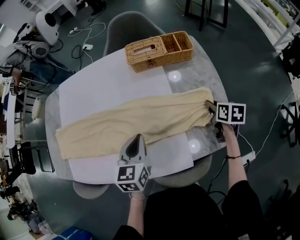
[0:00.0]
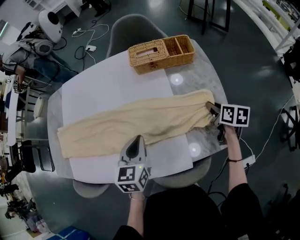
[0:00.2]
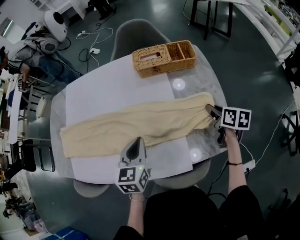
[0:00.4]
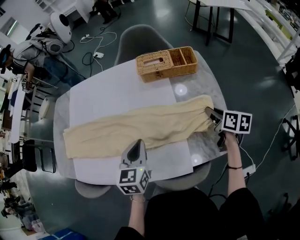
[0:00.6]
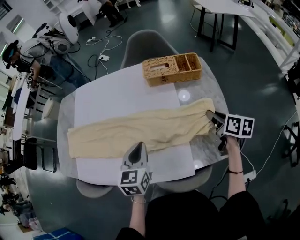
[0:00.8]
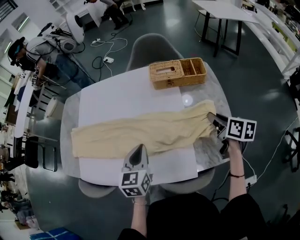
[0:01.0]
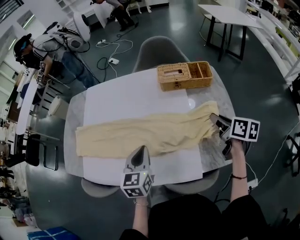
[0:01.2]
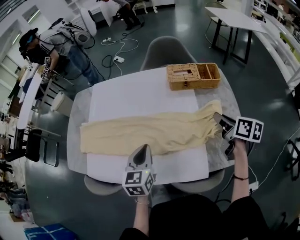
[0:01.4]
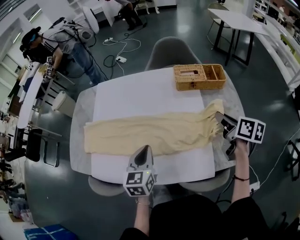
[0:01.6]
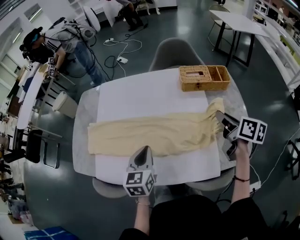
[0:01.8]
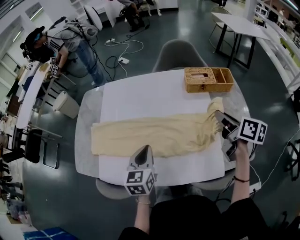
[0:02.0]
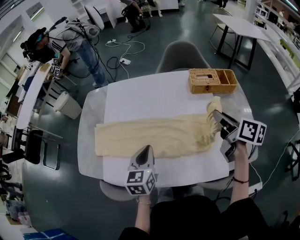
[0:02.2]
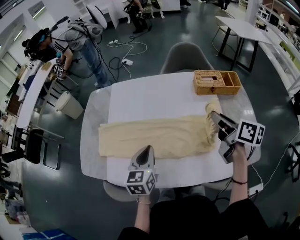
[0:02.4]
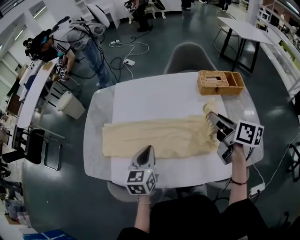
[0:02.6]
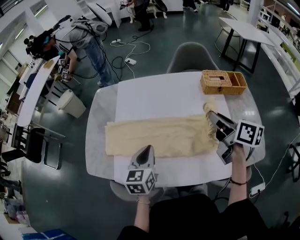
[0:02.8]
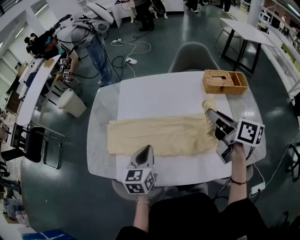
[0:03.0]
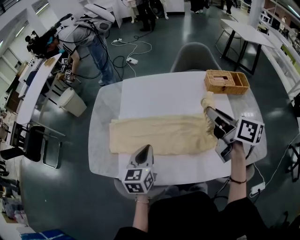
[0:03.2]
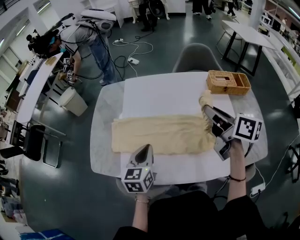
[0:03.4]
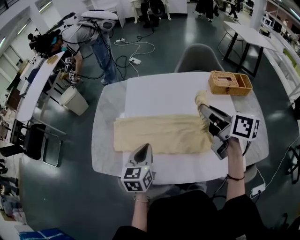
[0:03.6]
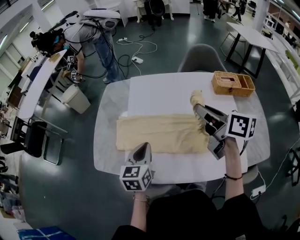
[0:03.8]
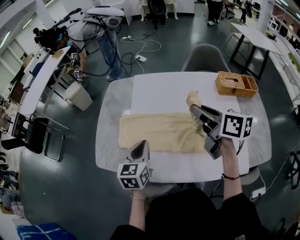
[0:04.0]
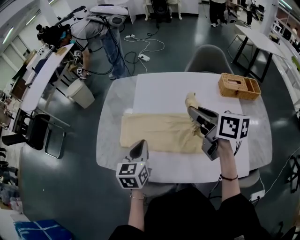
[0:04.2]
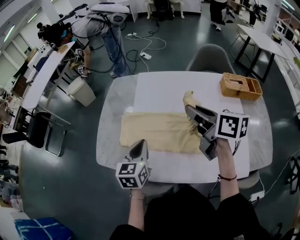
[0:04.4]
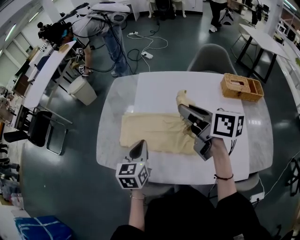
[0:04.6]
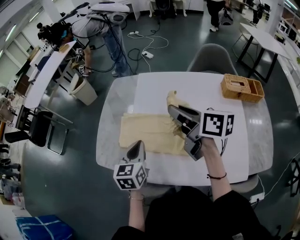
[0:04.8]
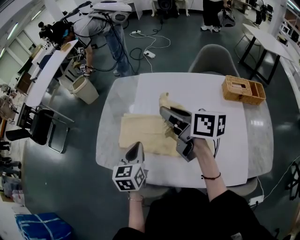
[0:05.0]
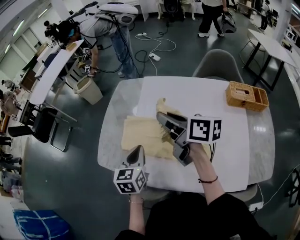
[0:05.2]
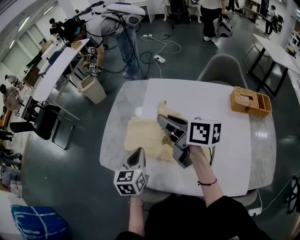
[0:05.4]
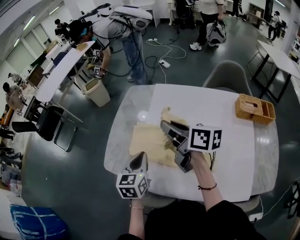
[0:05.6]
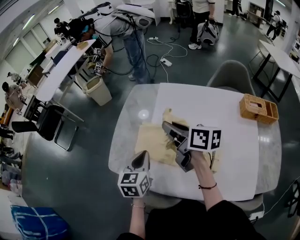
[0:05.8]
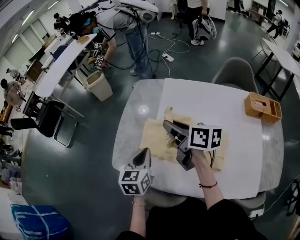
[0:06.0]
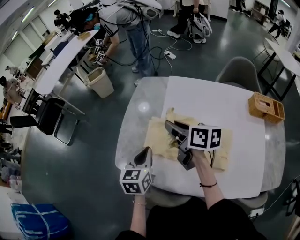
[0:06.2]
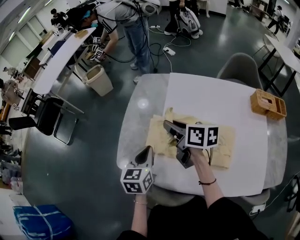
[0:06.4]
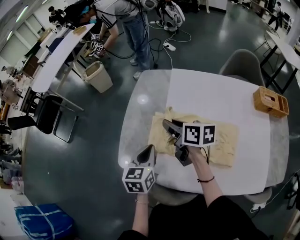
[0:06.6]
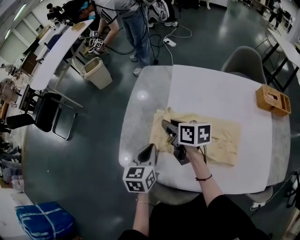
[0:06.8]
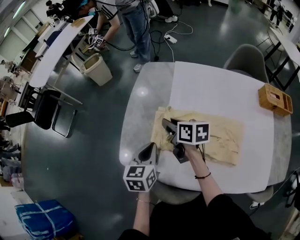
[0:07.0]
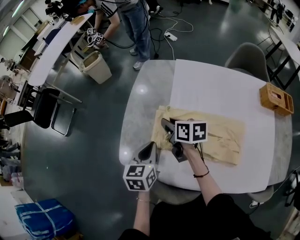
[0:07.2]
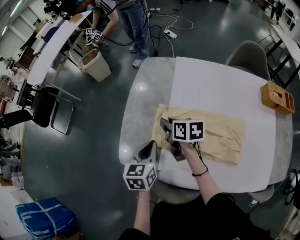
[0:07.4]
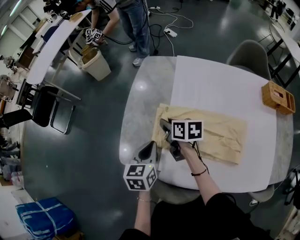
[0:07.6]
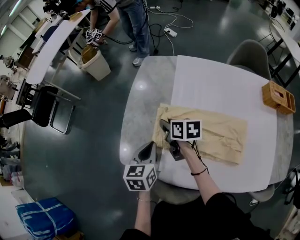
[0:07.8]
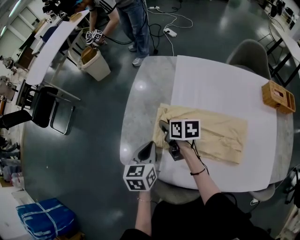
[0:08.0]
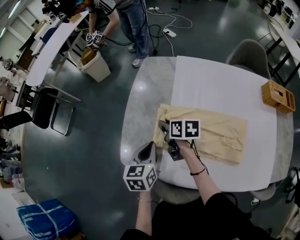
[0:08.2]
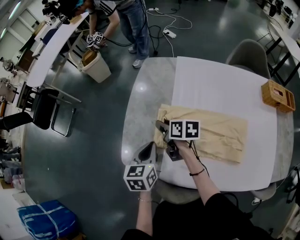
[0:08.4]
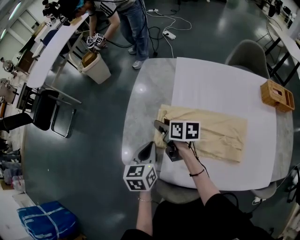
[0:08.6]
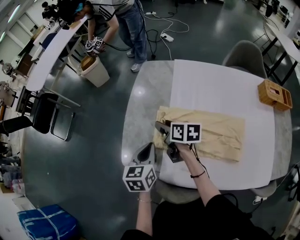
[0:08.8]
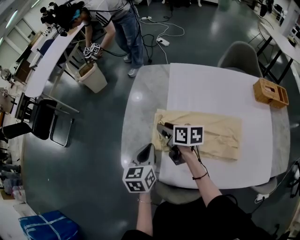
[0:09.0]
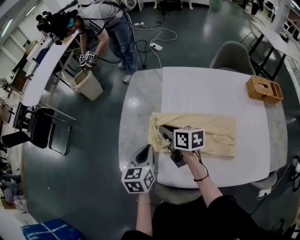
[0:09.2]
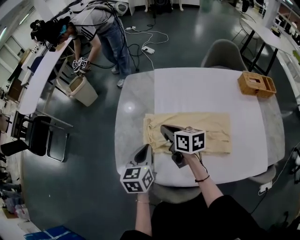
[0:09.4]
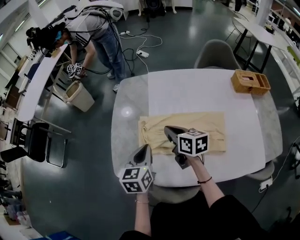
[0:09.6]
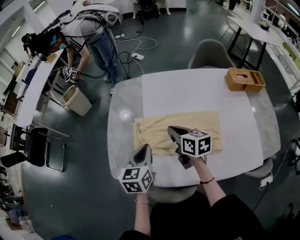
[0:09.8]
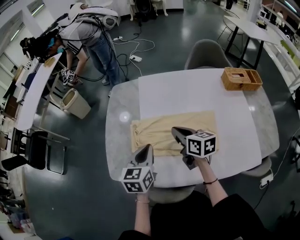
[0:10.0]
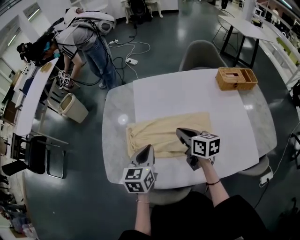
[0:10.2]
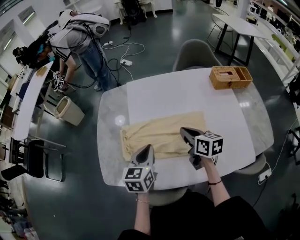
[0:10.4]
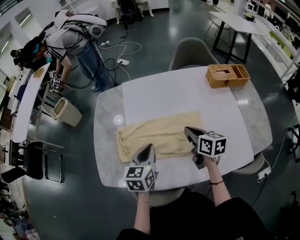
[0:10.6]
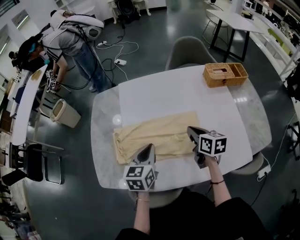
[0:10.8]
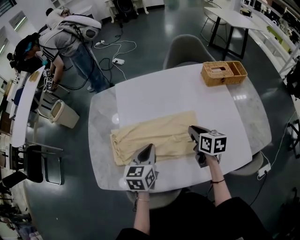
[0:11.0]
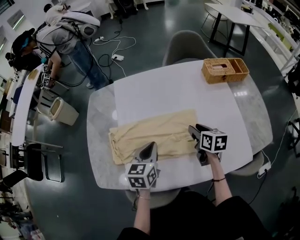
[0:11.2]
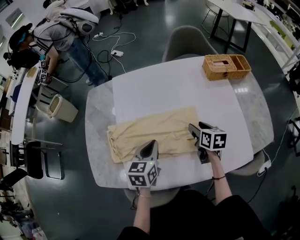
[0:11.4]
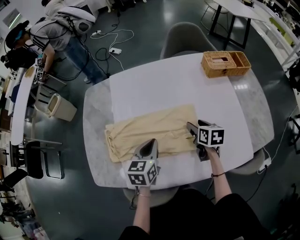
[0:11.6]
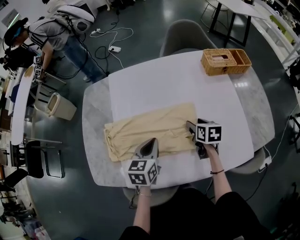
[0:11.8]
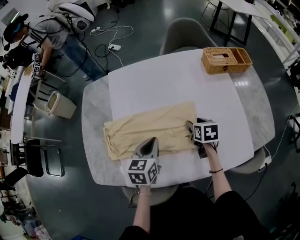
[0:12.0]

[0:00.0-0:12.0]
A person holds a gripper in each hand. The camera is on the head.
0:00.0 to 0:01.6: The left gripper heads to the left, covering some 15 cm. The right gripper moves upward and to the left, roughly 25 cm, and turns by approximately 20 degrees.
0:01.6 to 0:03.0: Both grippers travel together to the left, roughly 20 cm.
0:03.0 to 0:04.4: The right gripper heads to the left, covering approximately 20 cm; the left gripper shifts about 10 cm to the left.
0:04.4 to 0:06.0: The right gripper goes roughly 20 cm to the left and forward, while the left gripper shifts approximately 10 cm to the left and forward.
0:06.0 to 0:07.6: The right gripper is displaced downward and to the left by some 20 cm, and changes its angle by some 20 degrees; the left gripper travels downward by some 5 cm.
0:07.6 to 0:09.0: The right gripper opens its fingers.
0:09.0 to 0:10.4: The right gripper shifts roughly 25 cm to the right, swivels some 20 degrees, and closes its fingers. The left gripper heads to the right, covering some 15 cm.
0:10.4 to 0:12.0: The right gripper travels to the right and downward by about 20 cm, swivels some 30 degrees, and opens; the left gripper moves to the right and downward, roughly 10 cm.

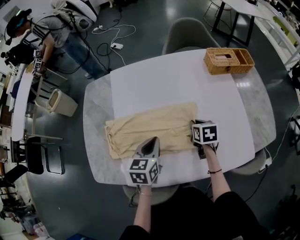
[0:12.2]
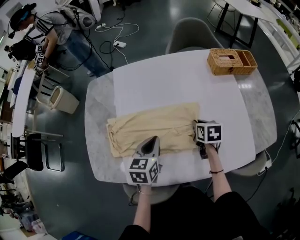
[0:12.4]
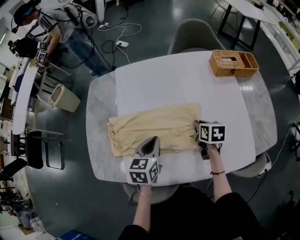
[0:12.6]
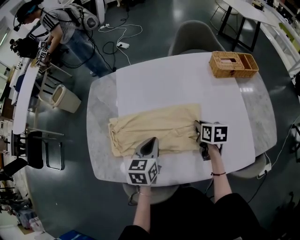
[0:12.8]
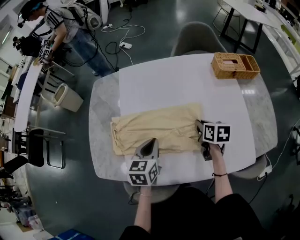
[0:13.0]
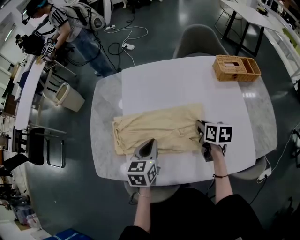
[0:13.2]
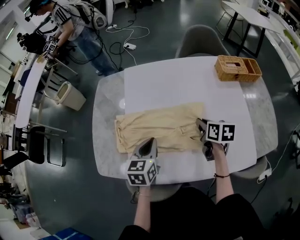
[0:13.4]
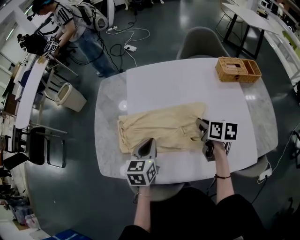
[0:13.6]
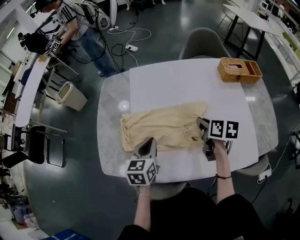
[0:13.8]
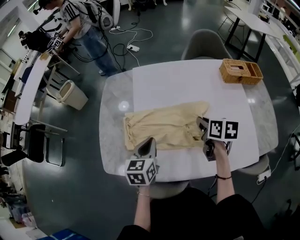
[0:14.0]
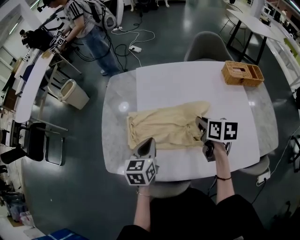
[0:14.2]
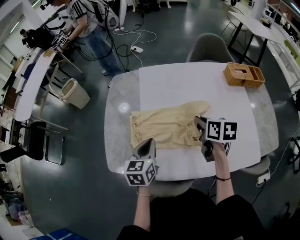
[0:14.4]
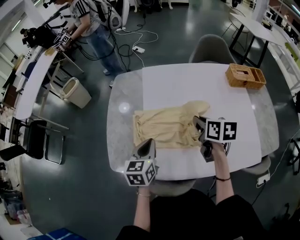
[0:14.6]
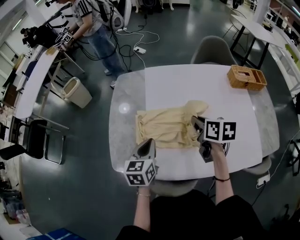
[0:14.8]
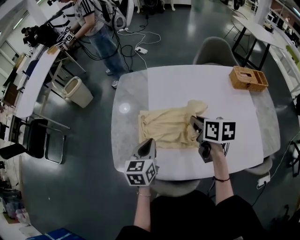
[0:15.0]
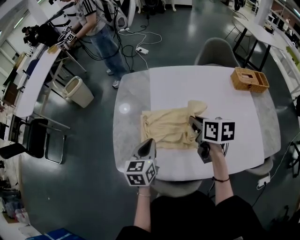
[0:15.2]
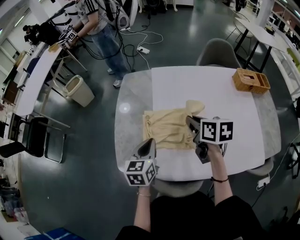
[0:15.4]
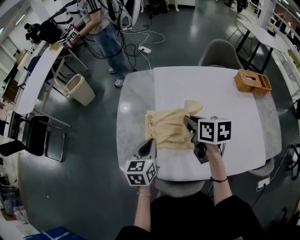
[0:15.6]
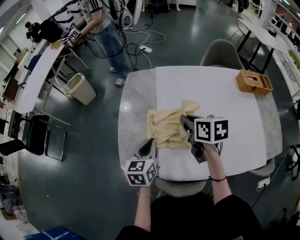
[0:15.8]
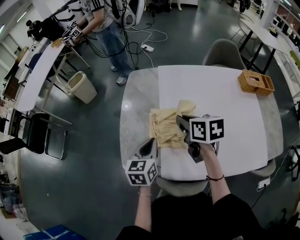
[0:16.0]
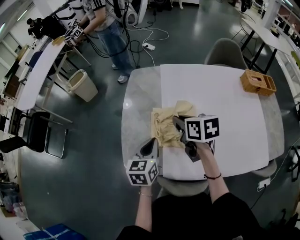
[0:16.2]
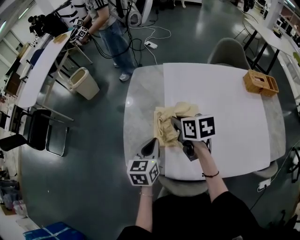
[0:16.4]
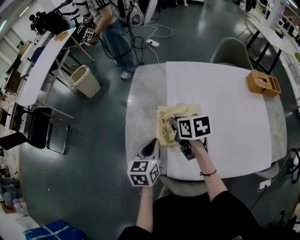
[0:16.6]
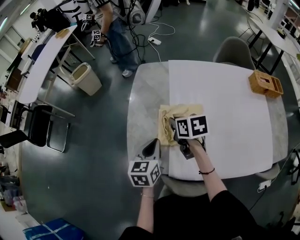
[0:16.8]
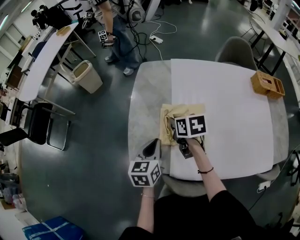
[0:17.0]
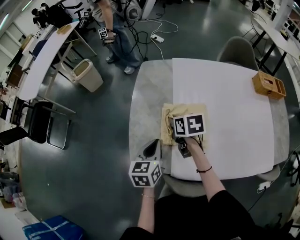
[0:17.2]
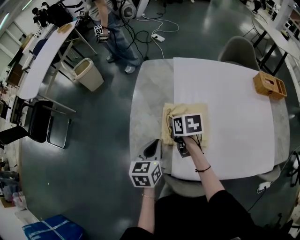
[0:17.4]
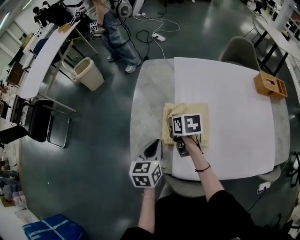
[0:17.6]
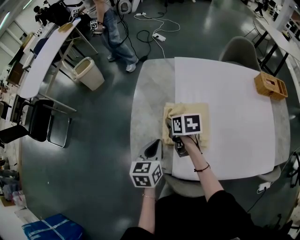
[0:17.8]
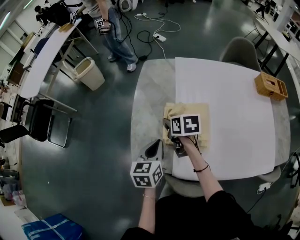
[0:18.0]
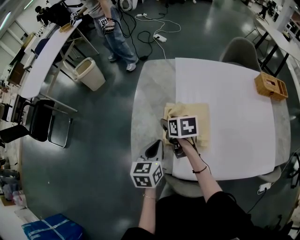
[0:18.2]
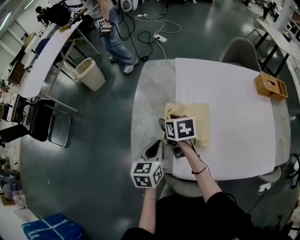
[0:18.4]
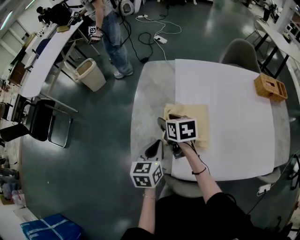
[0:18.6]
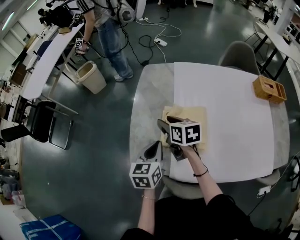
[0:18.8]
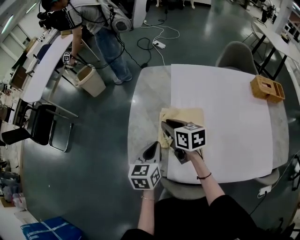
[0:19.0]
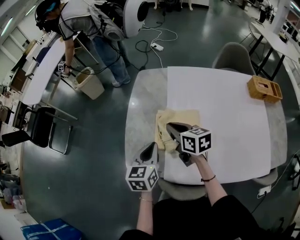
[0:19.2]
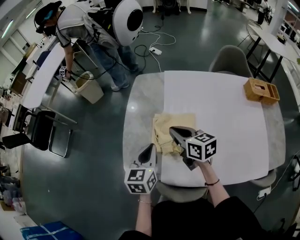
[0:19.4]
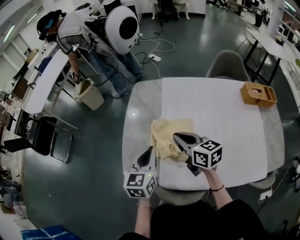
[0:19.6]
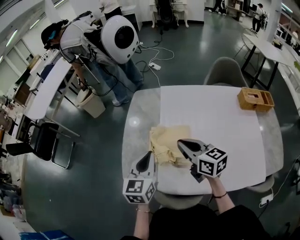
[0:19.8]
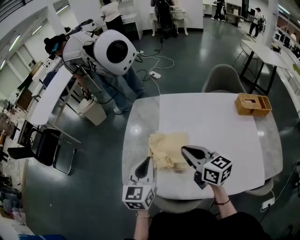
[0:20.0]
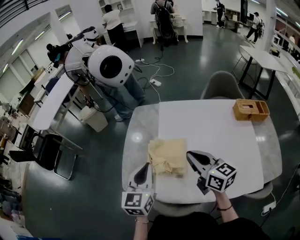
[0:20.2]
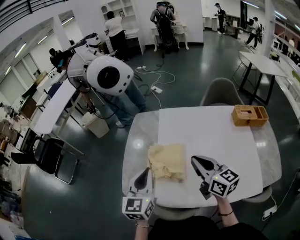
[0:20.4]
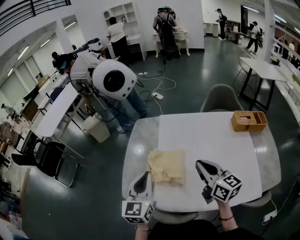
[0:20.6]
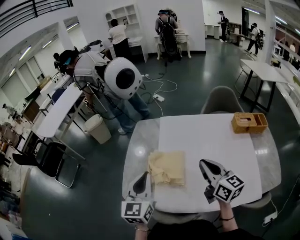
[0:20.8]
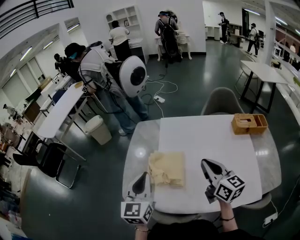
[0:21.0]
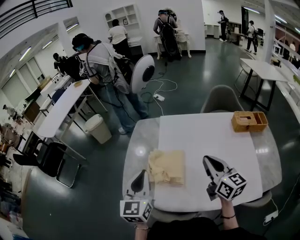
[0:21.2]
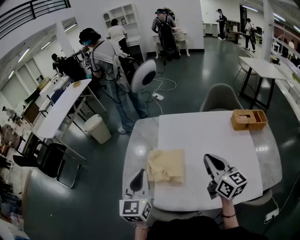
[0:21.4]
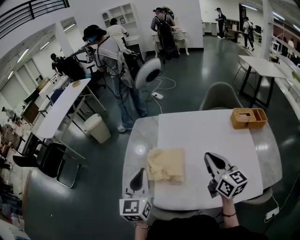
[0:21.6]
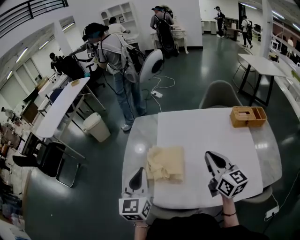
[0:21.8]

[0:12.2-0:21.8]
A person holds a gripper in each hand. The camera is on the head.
0:12.2 to 0:13.8: The right gripper moves upward and to the left, some 10 cm, while the left gripper is displaced to the left by some 10 cm.
0:13.8 to 0:15.4: The two grippers go roughly 15 cm to the left.
0:15.4 to 0:17.0: The left gripper heads to the left, covering about 5 cm, while the right gripper is displaced to the left and downward by some 20 cm.
0:17.0 to 0:18.6: The right gripper opens up.
0:18.6 to 0:20.2: The right gripper shifts roughly 30 cm upward, to the right and backward, angles its fingers upward, by about 30 degrees, and closes. Meanwhile the left gripper travels upward by some 15 cm, and changes its angle by roughly 20 degrees.
0:20.2 to 0:21.8: The right gripper is displaced to the right by about 10 cm.

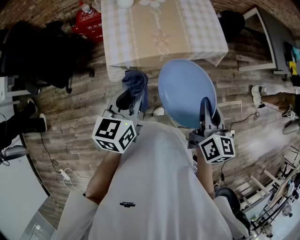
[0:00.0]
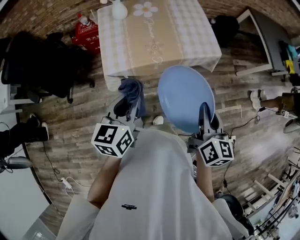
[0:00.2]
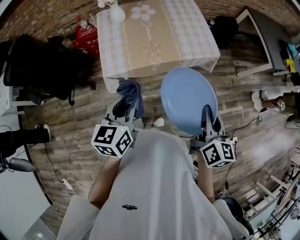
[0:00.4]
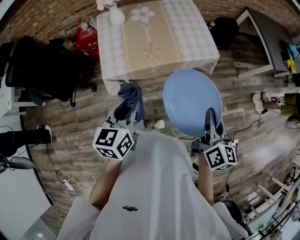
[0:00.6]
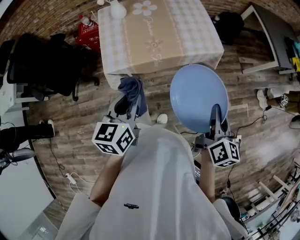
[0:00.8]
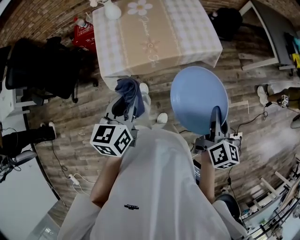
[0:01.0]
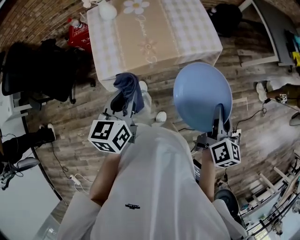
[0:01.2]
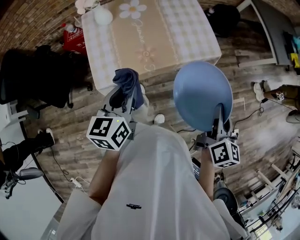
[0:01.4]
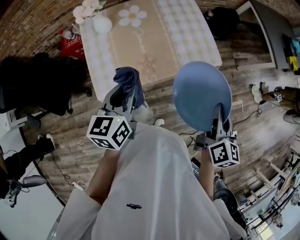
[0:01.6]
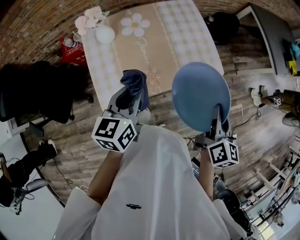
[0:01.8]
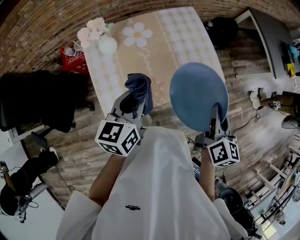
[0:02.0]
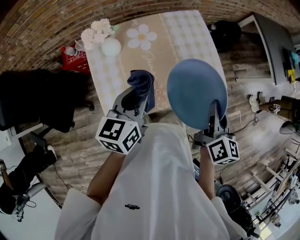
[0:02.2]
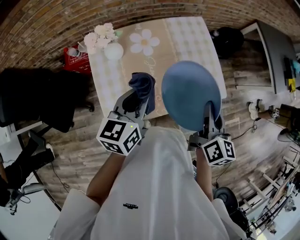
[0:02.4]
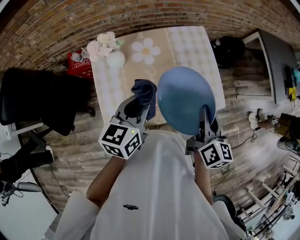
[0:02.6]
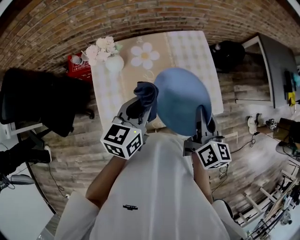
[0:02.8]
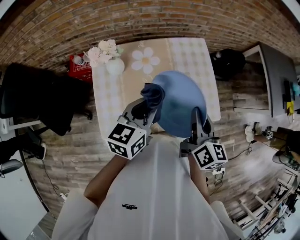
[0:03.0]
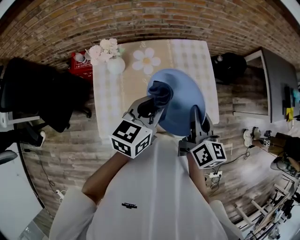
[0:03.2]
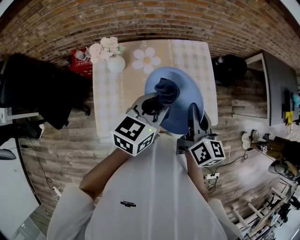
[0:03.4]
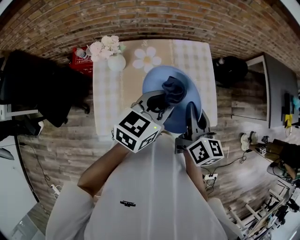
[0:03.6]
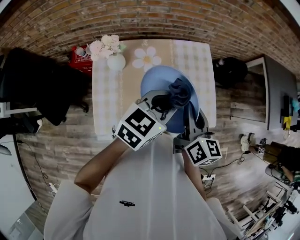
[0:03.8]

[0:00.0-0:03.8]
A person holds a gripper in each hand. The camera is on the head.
0:00.0 to 0:01.2: The left gripper heads forward and to the right, covering roughly 10 cm; the right gripper travels to the right by approximately 15 cm.
0:01.2 to 0:02.6: The grippers both shift forward and to the left by some 35 cm.
0:02.6 to 0:03.8: The left gripper moves to the right and forward, about 15 cm, and swivels roughly 20 degrees. The right gripper moves forward, about 5 cm.
